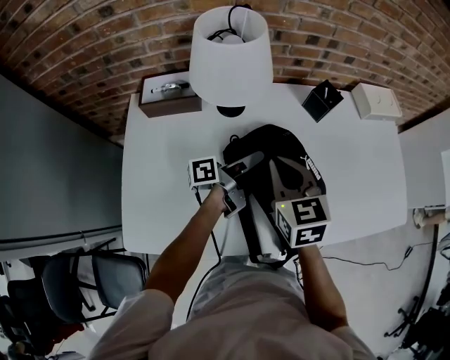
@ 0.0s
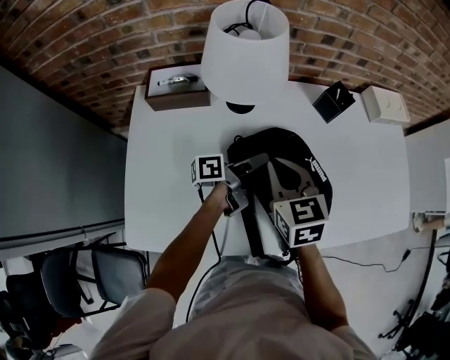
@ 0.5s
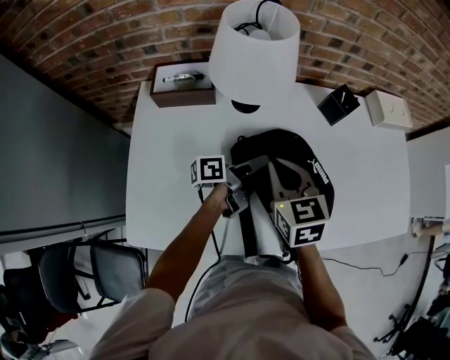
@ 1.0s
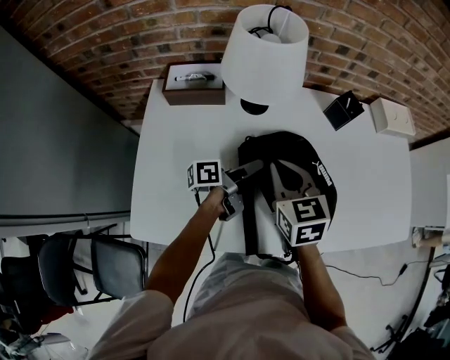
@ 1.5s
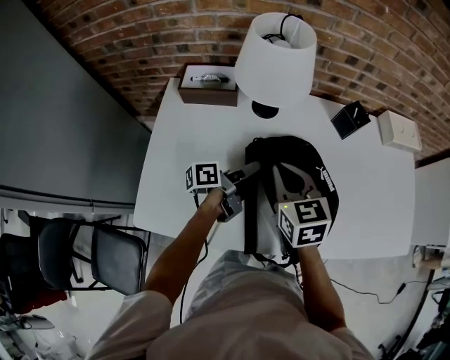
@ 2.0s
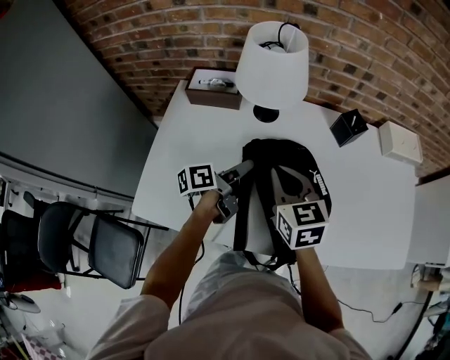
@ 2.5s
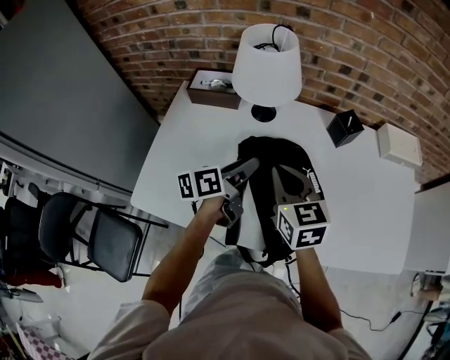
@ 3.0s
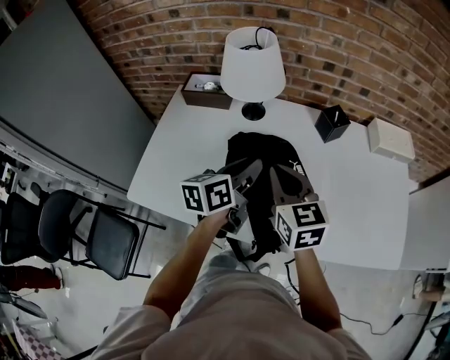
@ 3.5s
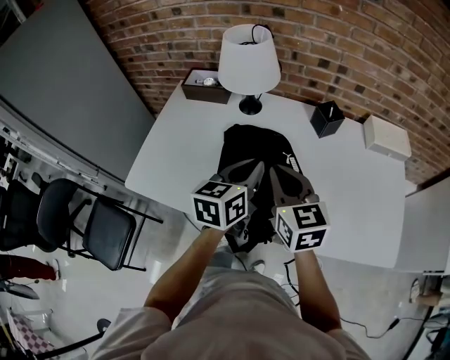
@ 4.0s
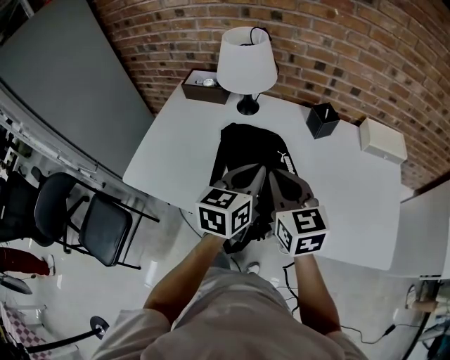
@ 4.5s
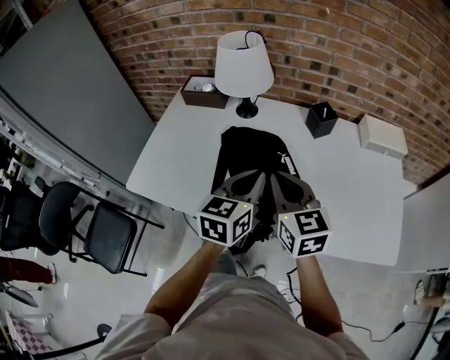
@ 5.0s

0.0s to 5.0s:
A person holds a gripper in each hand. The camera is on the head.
2.5s to 5.0s: The right gripper ends up approximately 20 cm from where it was.

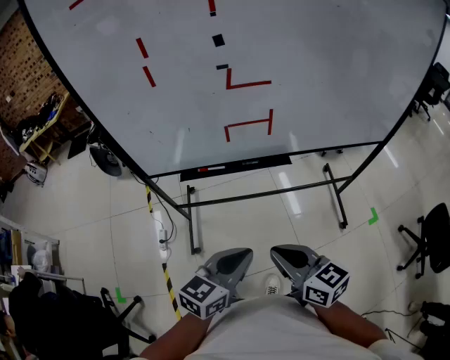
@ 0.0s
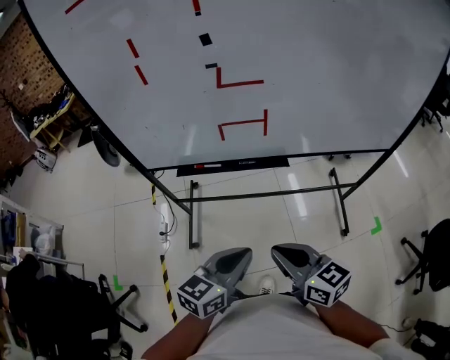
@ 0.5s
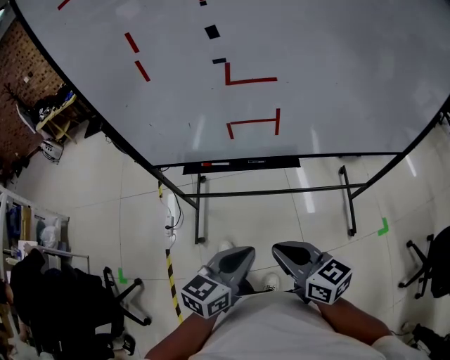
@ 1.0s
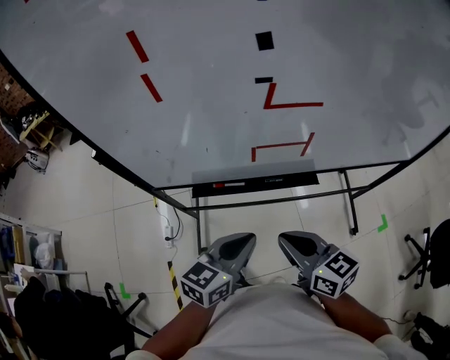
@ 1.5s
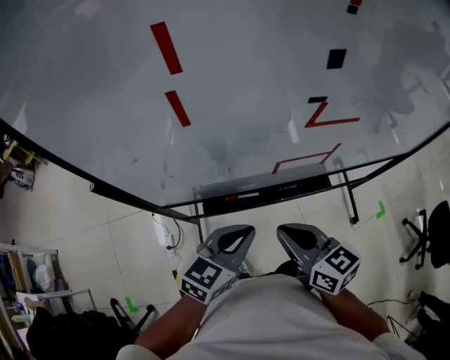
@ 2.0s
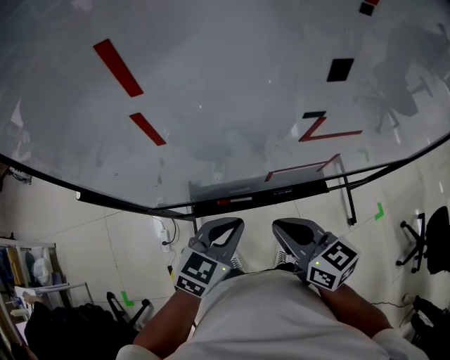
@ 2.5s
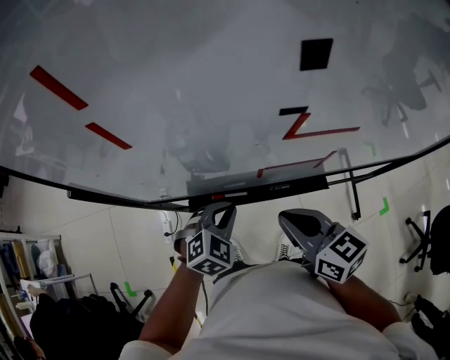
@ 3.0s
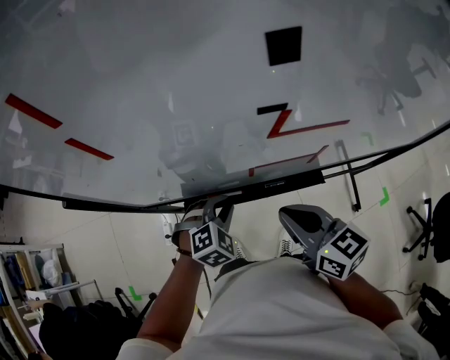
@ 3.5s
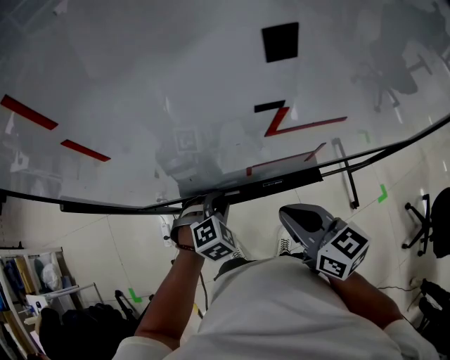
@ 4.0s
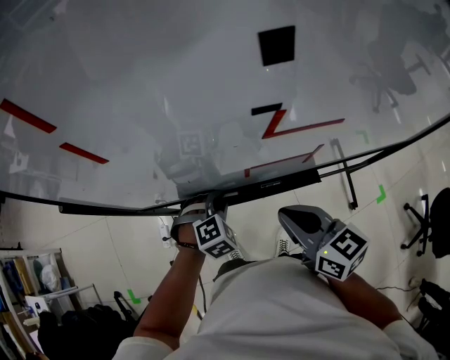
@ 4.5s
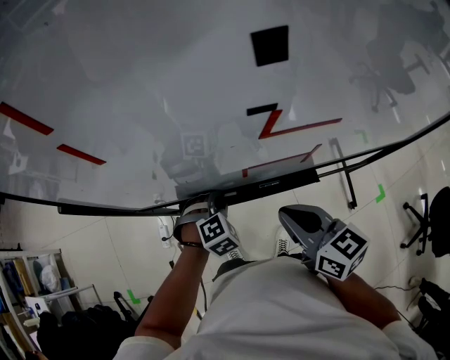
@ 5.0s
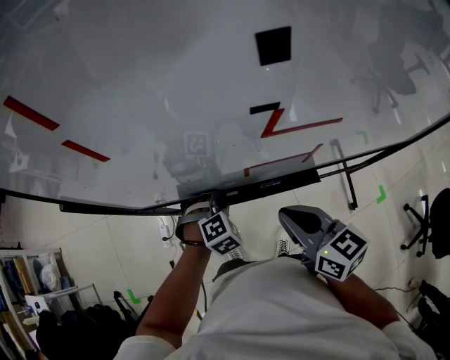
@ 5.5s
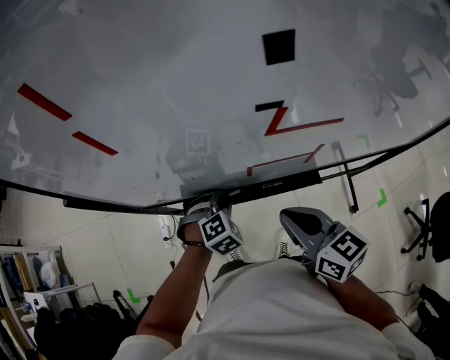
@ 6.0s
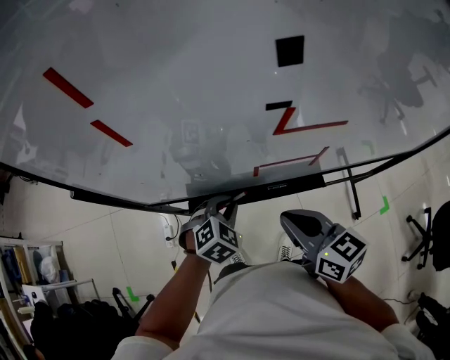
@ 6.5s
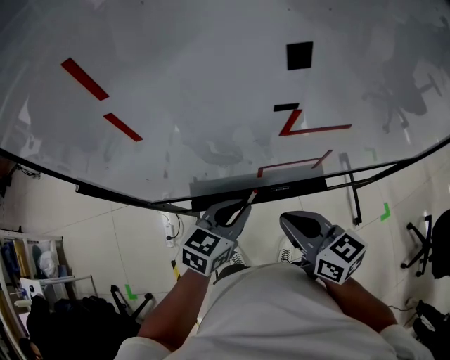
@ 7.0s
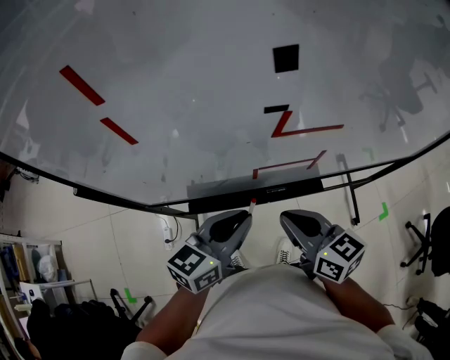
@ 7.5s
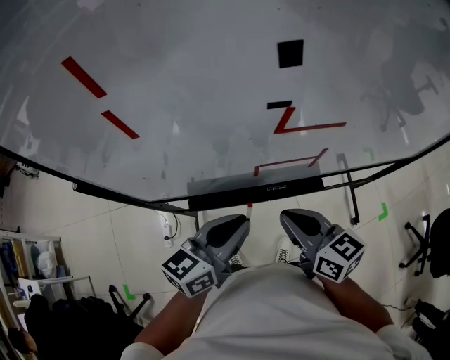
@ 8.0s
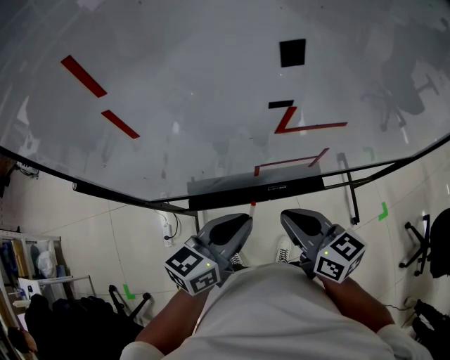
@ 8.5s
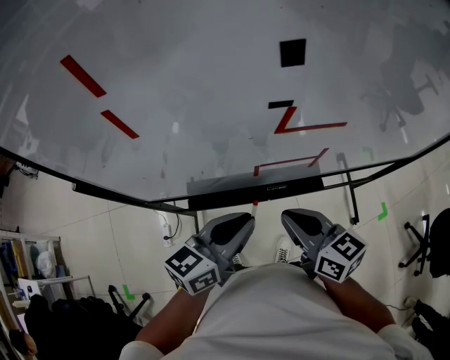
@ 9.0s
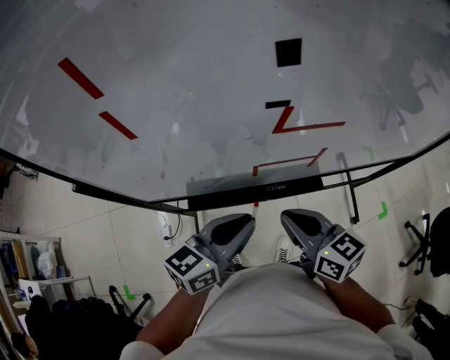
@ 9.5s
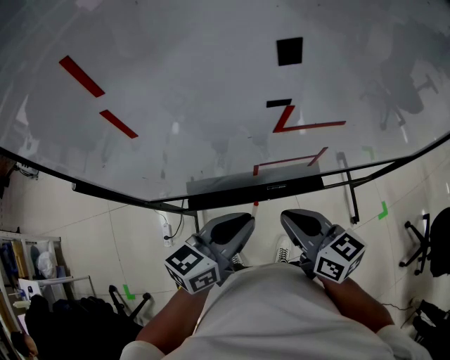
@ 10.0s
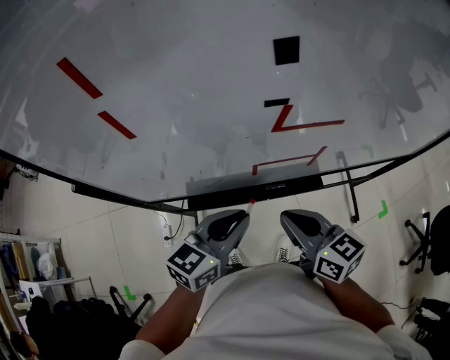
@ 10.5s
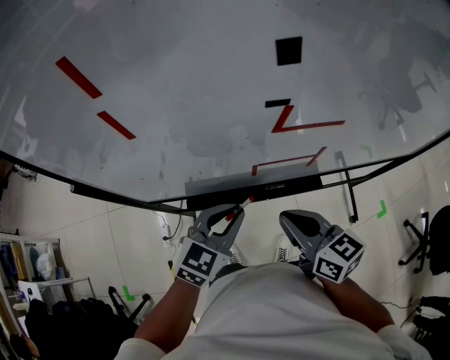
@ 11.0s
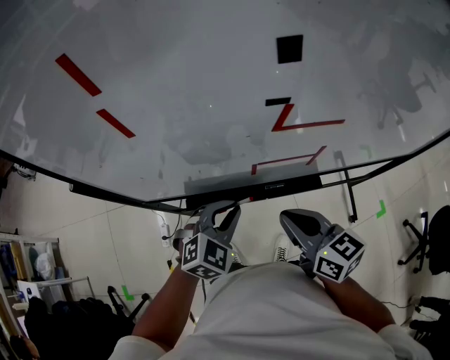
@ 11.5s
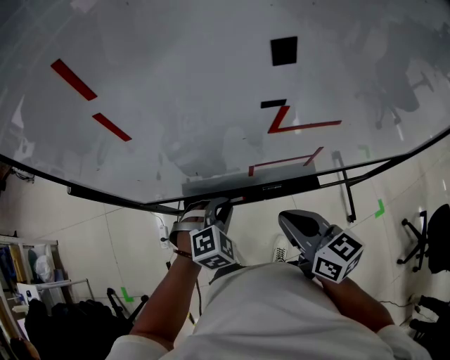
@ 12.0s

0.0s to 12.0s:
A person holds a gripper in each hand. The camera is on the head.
0.0s to 2.0s: Both grippers travel together forward and to the left, approximately 25 cm.
2.0s to 4.0s: The right gripper shifts roughly 5 cm to the right. The left gripper heads downward and forward, covering about 20 cm, and tilts its fingers approximately 40 degrees downward.
4.0s to 6.0s: There are only small adjustments of the grippers.
6.0s to 8.0s: The left gripper shifts approximately 20 cm upward, and tilts its fingers roughly 50 degrees upward.
8.0s to 10.0s: There are only small adjustments of the grippers.
10.0s to 12.0s: The left gripper travels downward by roughly 15 cm, and tilts its fingers some 40 degrees downward.

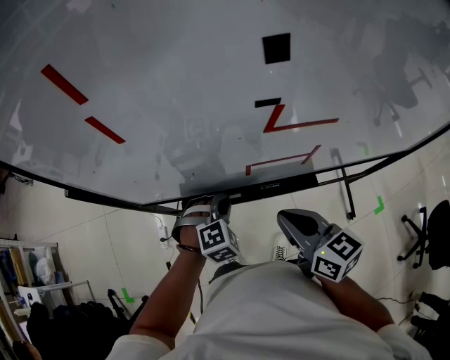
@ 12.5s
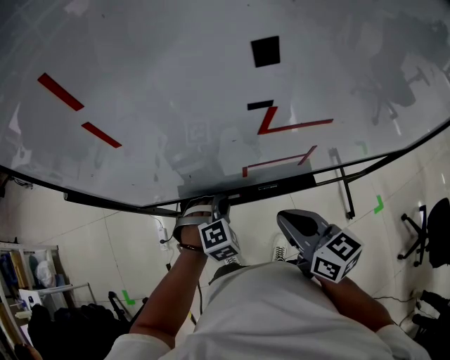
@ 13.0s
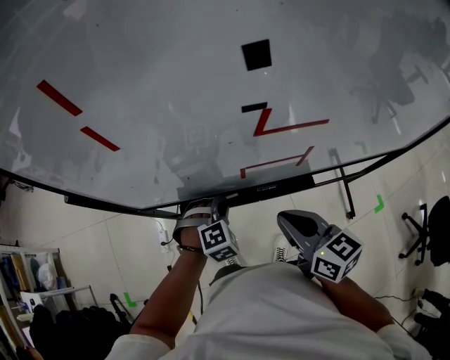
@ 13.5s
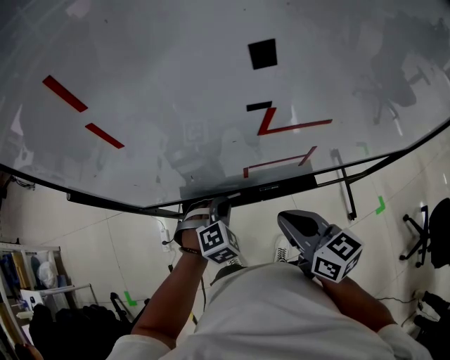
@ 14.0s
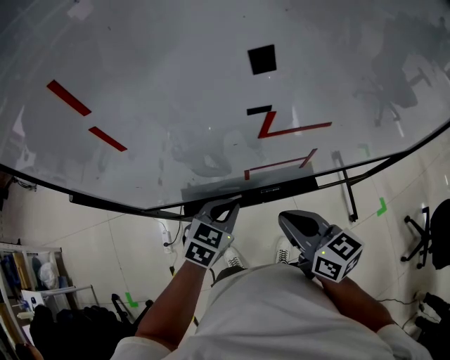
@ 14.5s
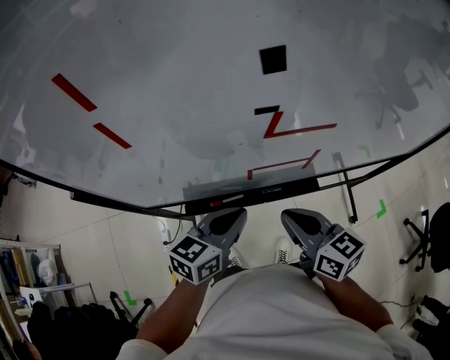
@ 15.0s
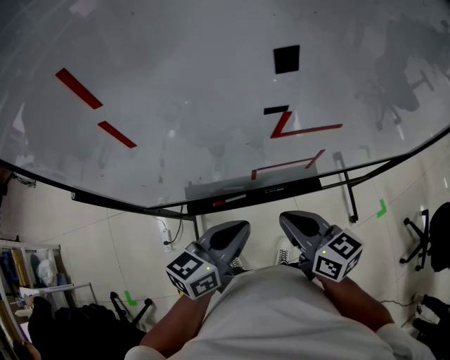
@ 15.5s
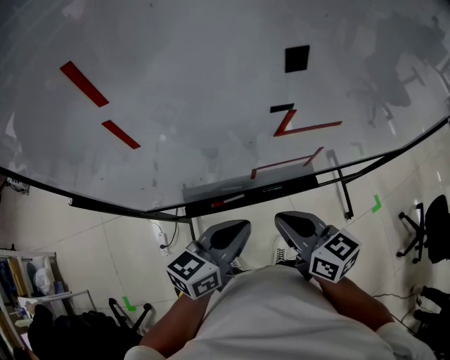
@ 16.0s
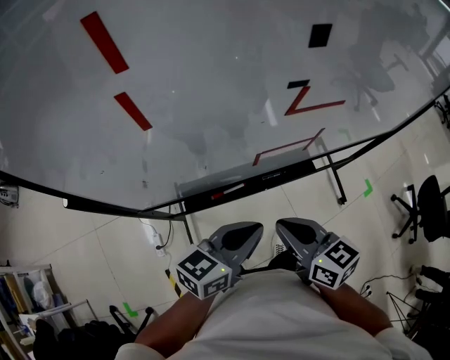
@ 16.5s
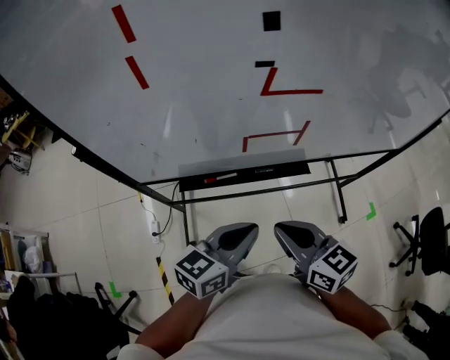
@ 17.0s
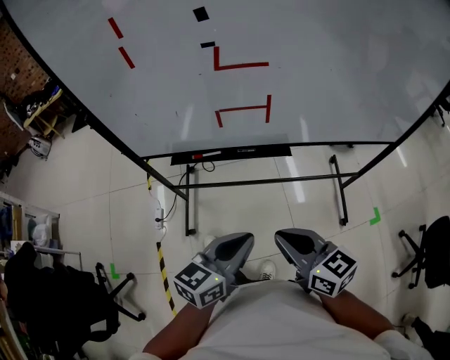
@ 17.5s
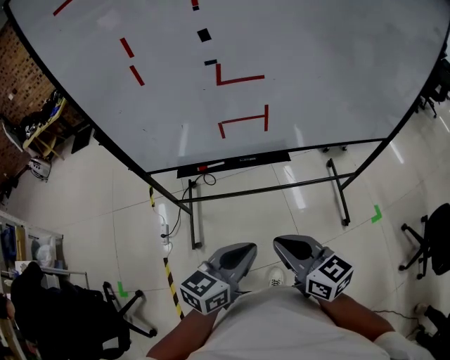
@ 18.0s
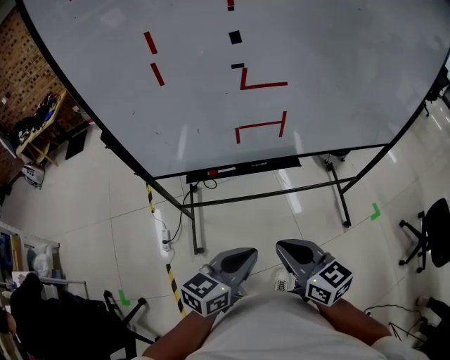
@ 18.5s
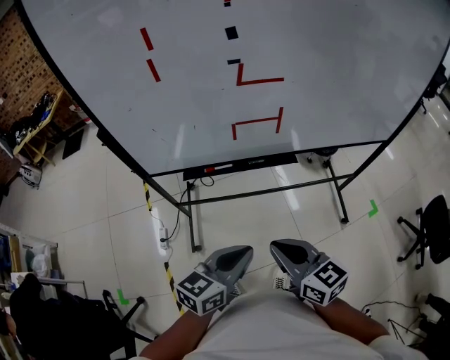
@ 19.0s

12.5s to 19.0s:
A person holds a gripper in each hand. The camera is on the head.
12.5s to 14.5s: The left gripper moves upward, about 5 cm, and twists approximately 40 degrees counterclockwise, seen from behind.
14.5s to 17.0s: The right gripper moves backward, roughly 10 cm; the left gripper travels backward, upward and to the right by approximately 20 cm, and swivels approximately 40 degrees.
17.0s to 19.0s: Both grippers move backward, approximately 15 cm.

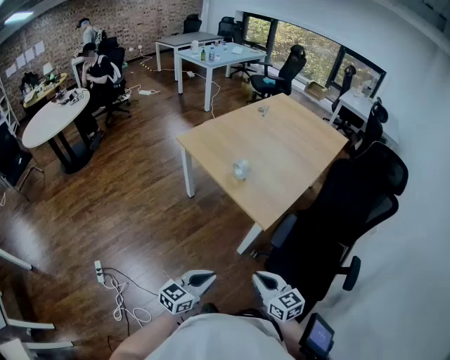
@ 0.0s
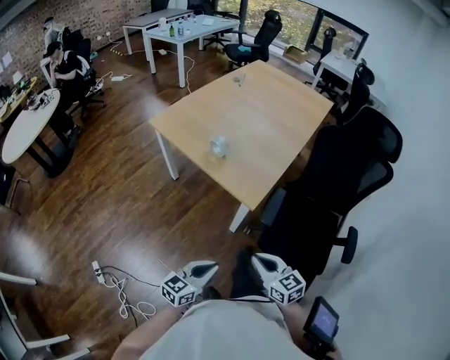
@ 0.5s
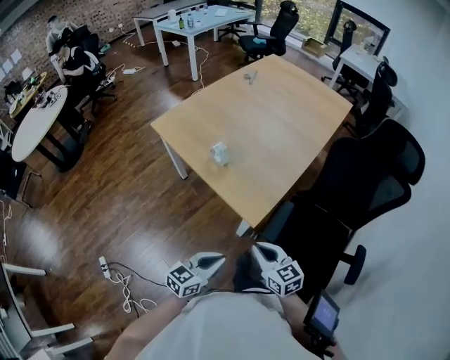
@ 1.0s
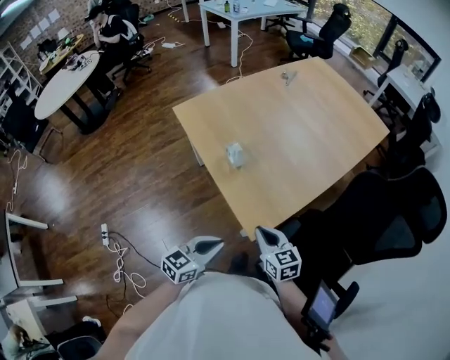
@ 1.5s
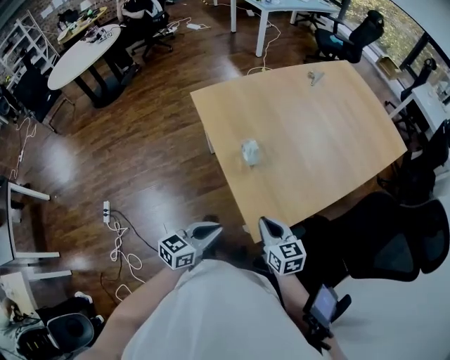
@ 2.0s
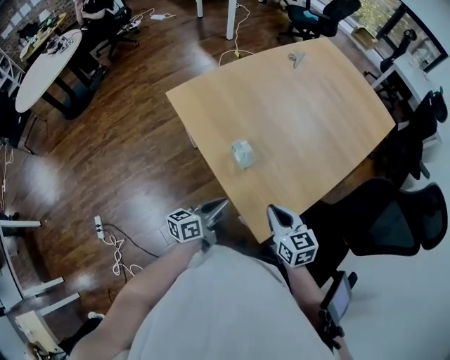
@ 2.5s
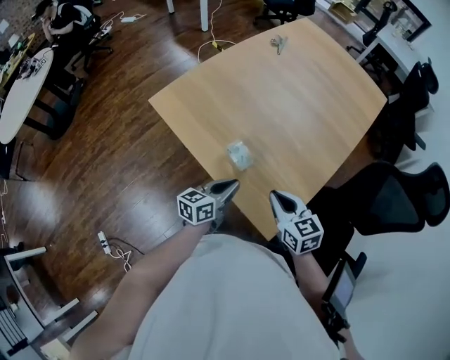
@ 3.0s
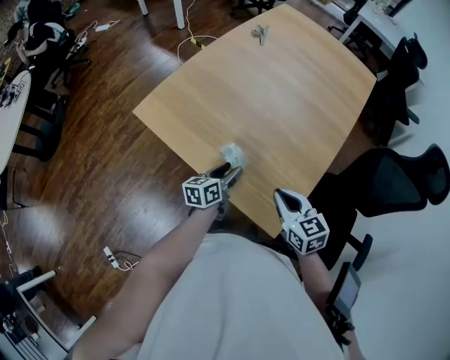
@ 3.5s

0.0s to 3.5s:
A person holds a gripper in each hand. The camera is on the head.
0.0s to 2.0s: The grippers both shift forward by roughly 30 cm.
2.0s to 3.5s: The right gripper shifts roughly 10 cm forward, and changes its angle by some 20 degrees; the left gripper travels forward by some 25 cm, turns by approximately 20 degrees, and opens its fingers.
